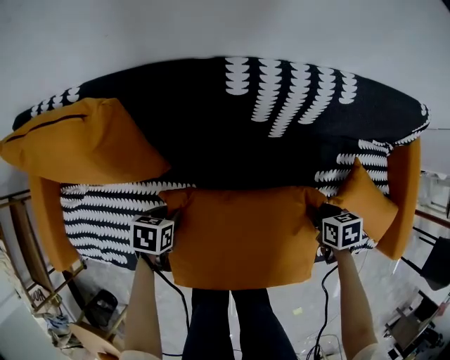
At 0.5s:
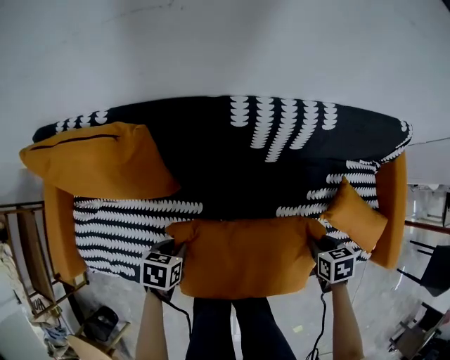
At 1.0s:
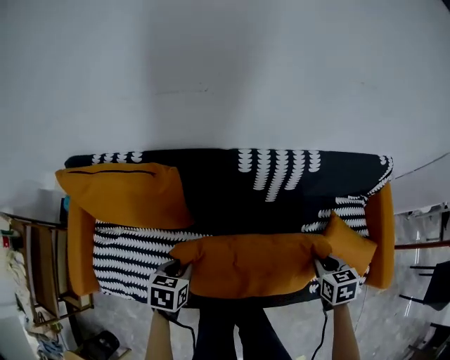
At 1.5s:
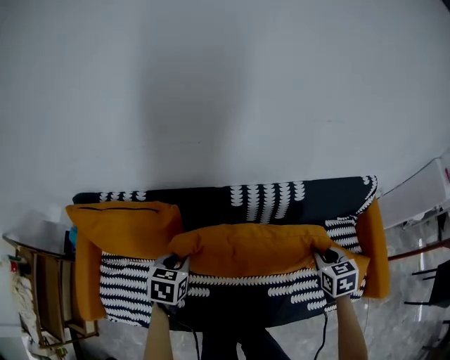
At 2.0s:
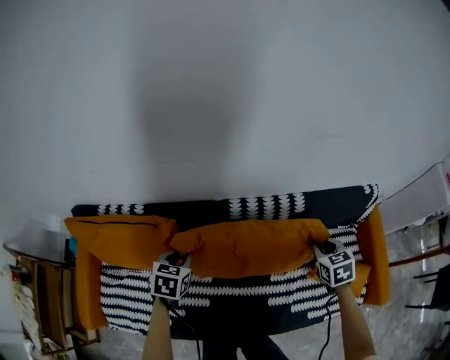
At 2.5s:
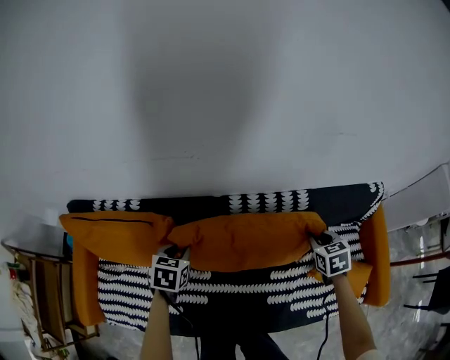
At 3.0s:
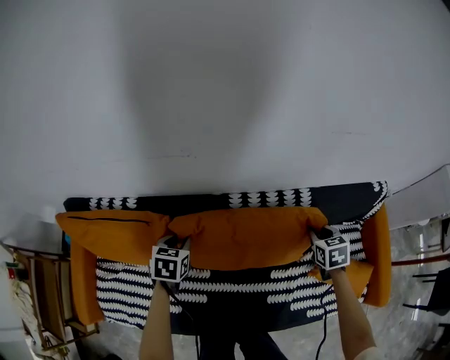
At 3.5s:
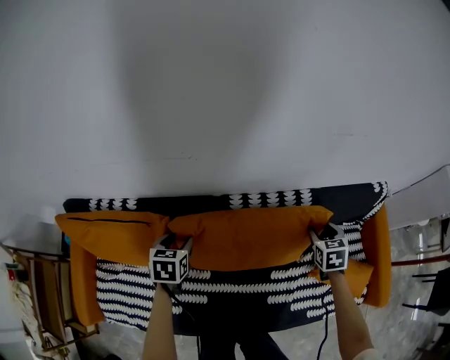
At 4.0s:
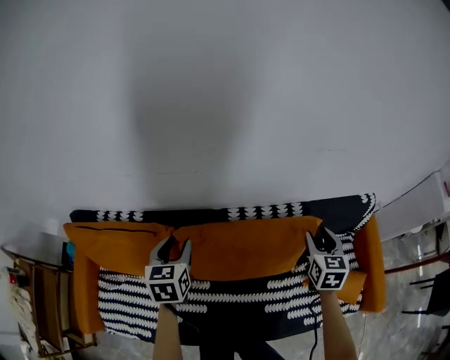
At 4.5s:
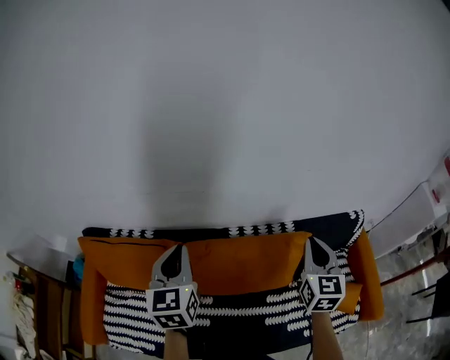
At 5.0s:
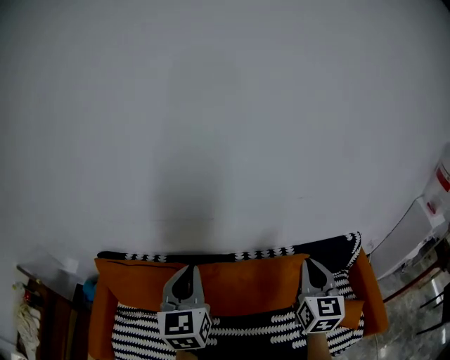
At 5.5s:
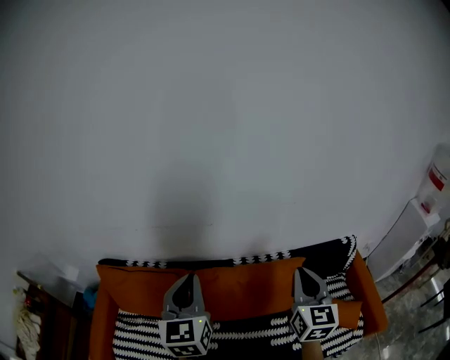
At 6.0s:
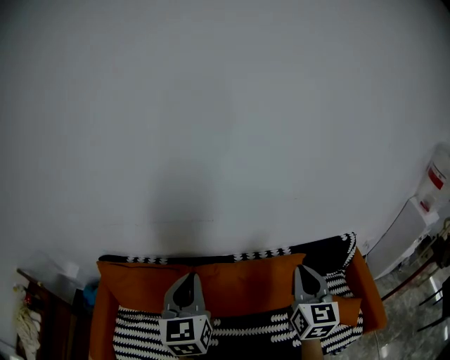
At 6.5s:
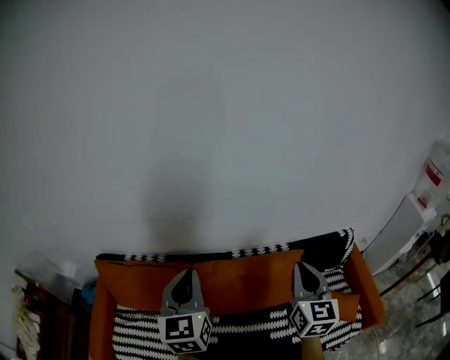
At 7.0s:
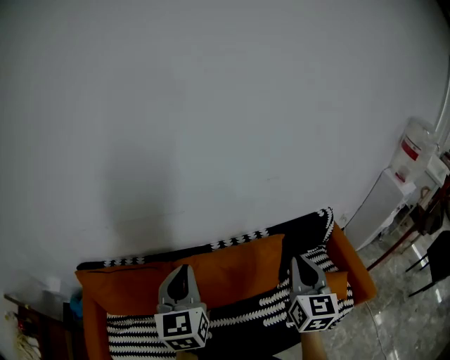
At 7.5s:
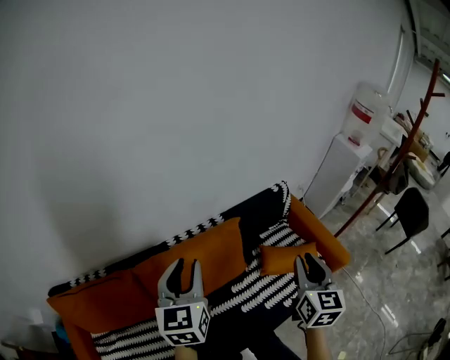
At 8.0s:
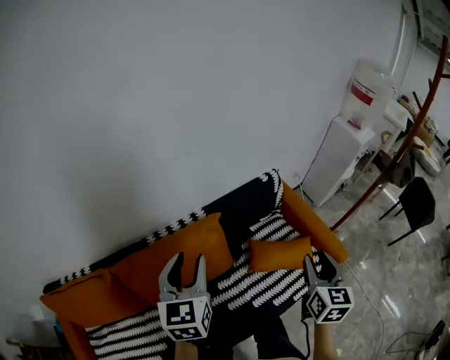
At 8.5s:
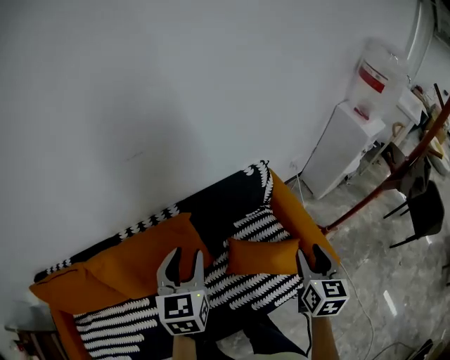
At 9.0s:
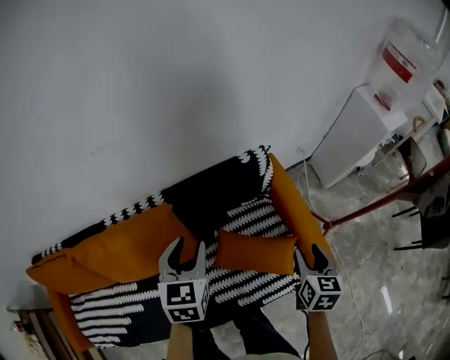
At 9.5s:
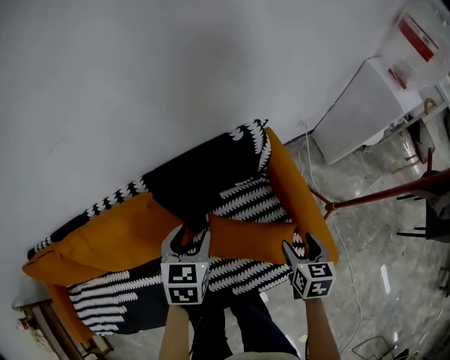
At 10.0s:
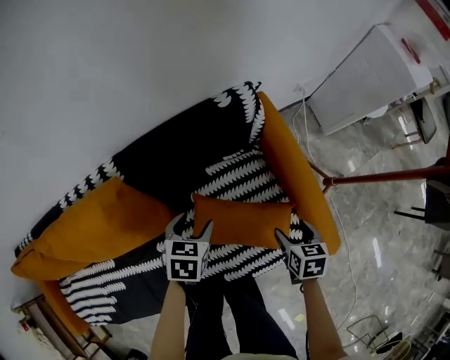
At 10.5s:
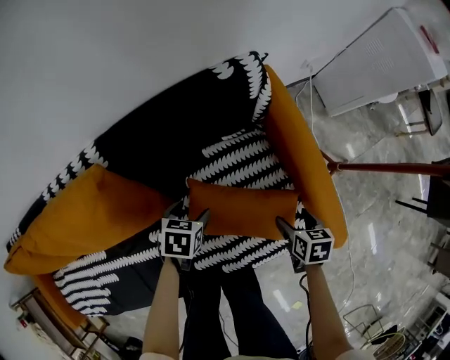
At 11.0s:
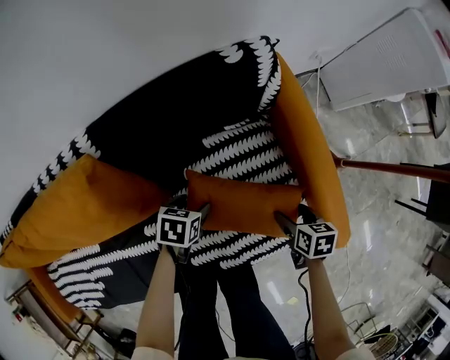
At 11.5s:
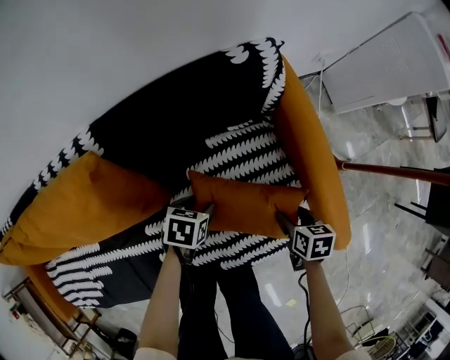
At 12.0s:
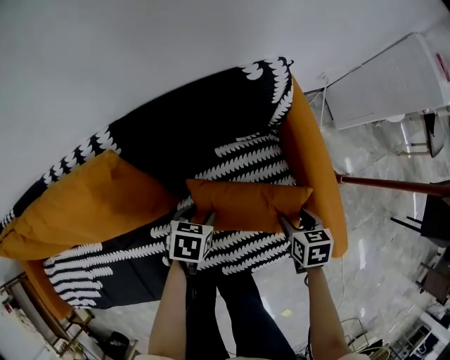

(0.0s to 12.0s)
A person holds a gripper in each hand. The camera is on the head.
0.0s - 2.0s: The two grippers go some 30 cm upward and forward. The left gripper swivels roughly 30 degrees. The right gripper swivels approximately 30 degrees.
2.0s - 4.0s: Both grippers move upward and forward, approximately 10 cm. The right gripper rotates approximately 20 degrees, and opens up. The left gripper swivels some 20 degrees, and opens.
4.0s - 6.0s: The two grippers go approximately 30 cm upward and backward. The right gripper swivels some 30 degrees, and closes its fingers. Meanwhile the left gripper swivels roughly 30 degrees, and closes.
6.0s - 8.0s: The left gripper ends up roughly 30 cm from where it was, rotates some 30 degrees, and opens its fingers; the right gripper moves about 35 cm, rotates some 40 degrees, and opens its fingers.
8.0s - 10.0s: Both grippers travel together downward and to the right, some 50 cm. The left gripper points its fingers some 40 degrees further downward. The right gripper tips its fingers downward by roughly 40 degrees, and opens its fingers.
10.0s - 12.0s: The left gripper travels downward by about 10 cm. Meanwhile the right gripper goes some 5 cm downward.

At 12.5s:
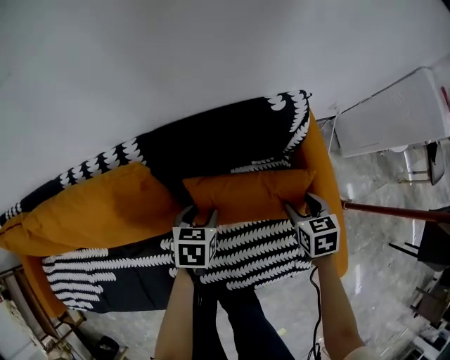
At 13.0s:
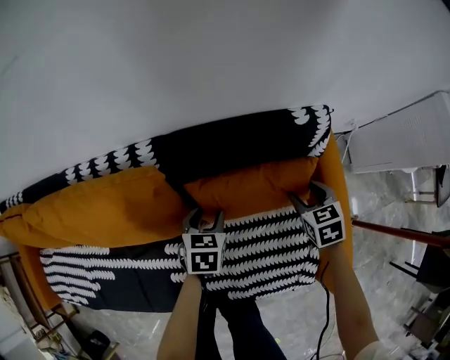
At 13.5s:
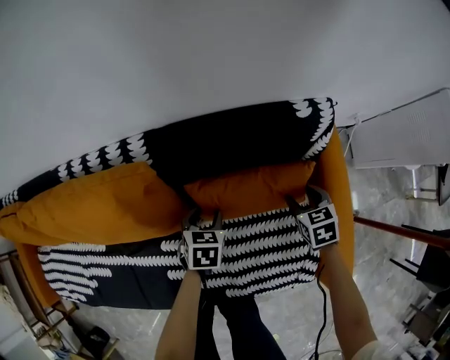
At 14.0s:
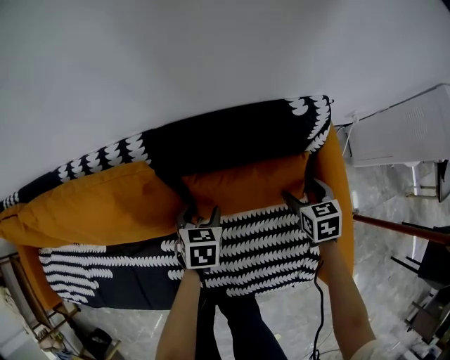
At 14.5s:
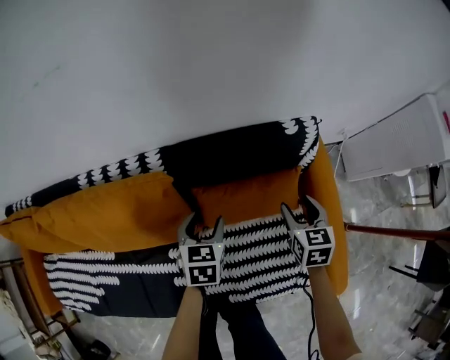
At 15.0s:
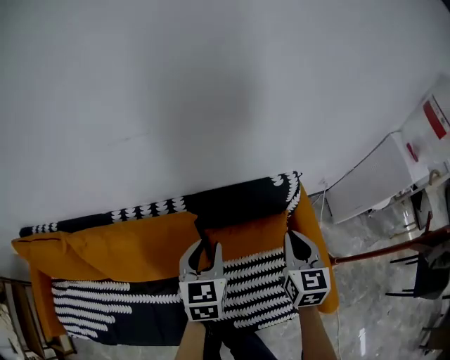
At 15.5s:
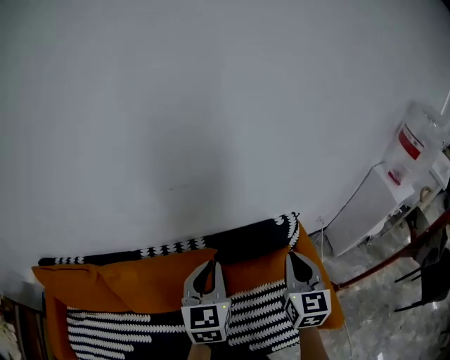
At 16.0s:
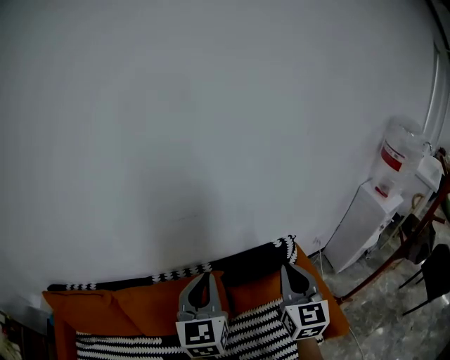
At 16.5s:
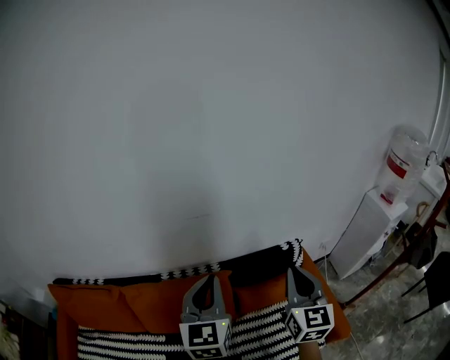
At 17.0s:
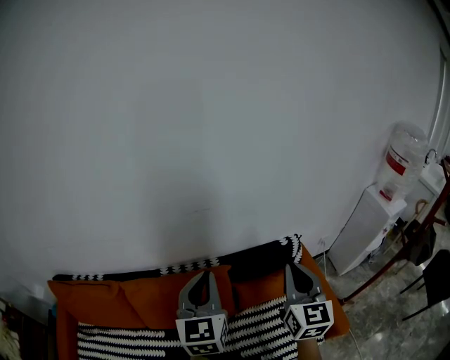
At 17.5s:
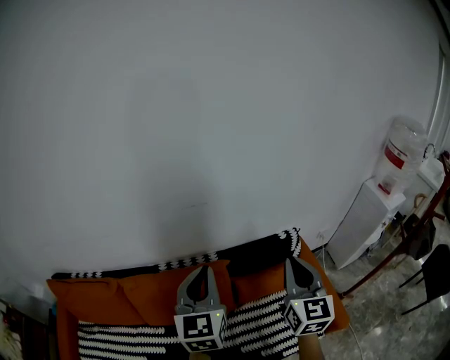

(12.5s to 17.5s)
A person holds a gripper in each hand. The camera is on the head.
12.5s - 15.0s: The grippers both shift upward by some 25 cm. The right gripper tips its fingers upward by roughly 30 degrees, and closes; the left gripper rotates approximately 30 degrees.
15.0s - 17.5s: The left gripper is displaced upward and to the left by about 30 cm, rotates about 20 degrees, and closes its fingers. The right gripper goes approximately 30 cm upward, backward and to the left, and turns by approximately 20 degrees.

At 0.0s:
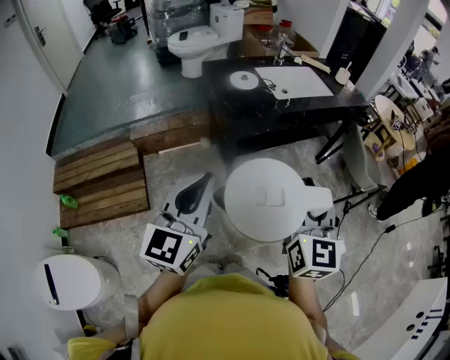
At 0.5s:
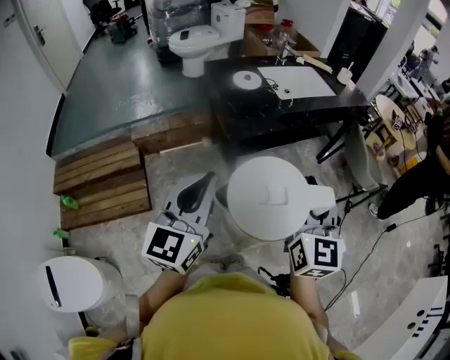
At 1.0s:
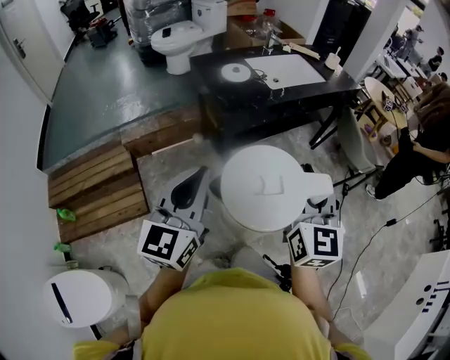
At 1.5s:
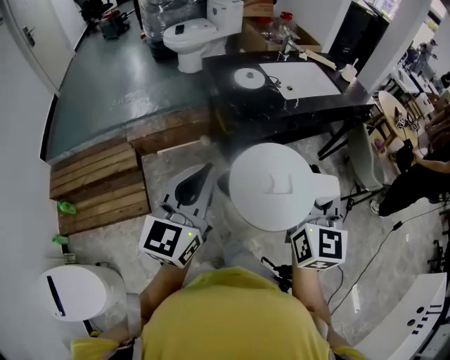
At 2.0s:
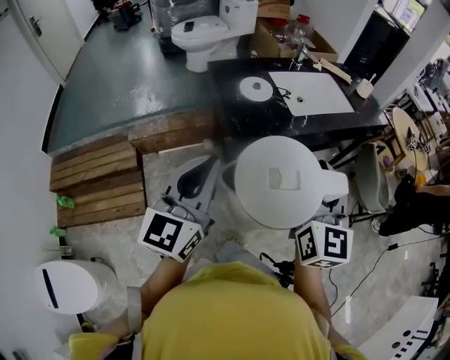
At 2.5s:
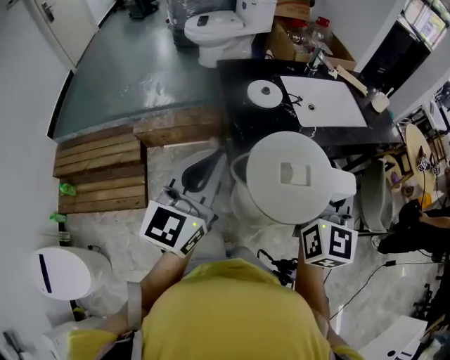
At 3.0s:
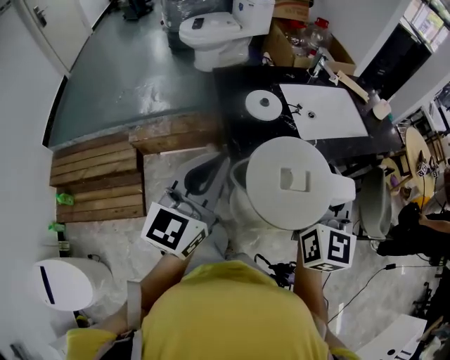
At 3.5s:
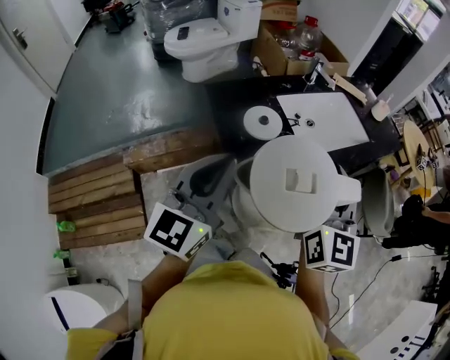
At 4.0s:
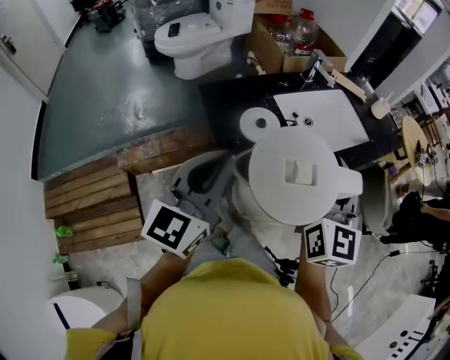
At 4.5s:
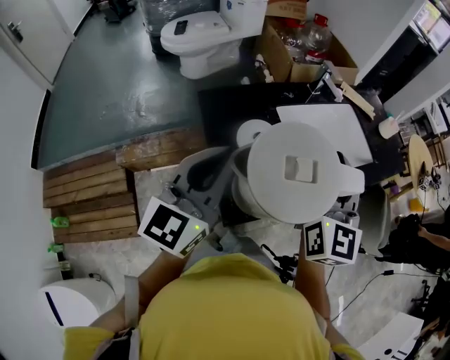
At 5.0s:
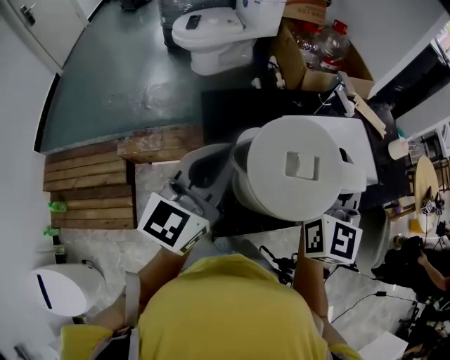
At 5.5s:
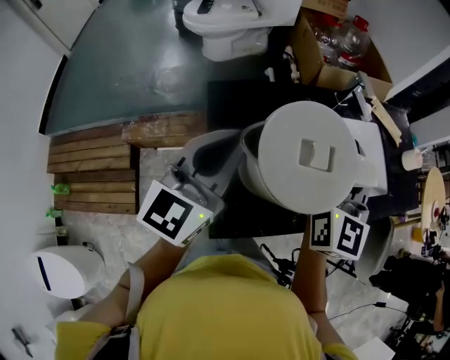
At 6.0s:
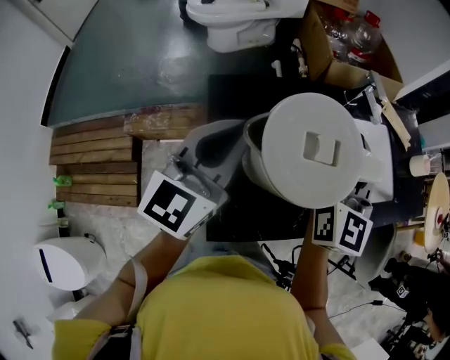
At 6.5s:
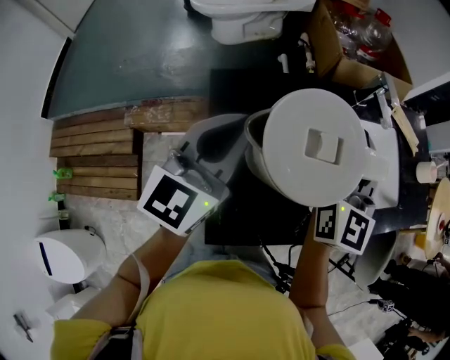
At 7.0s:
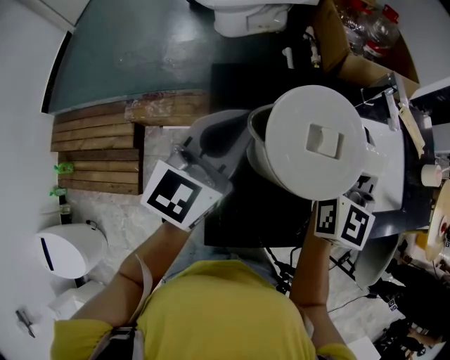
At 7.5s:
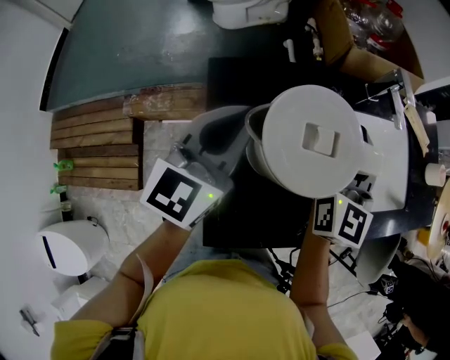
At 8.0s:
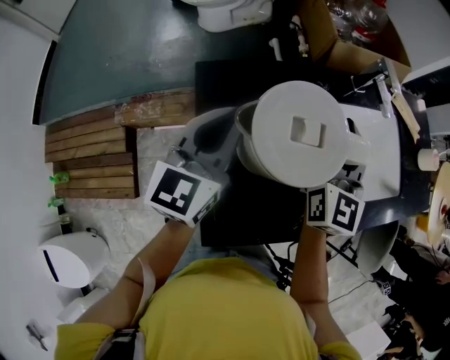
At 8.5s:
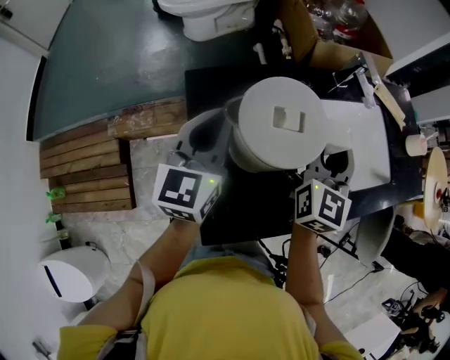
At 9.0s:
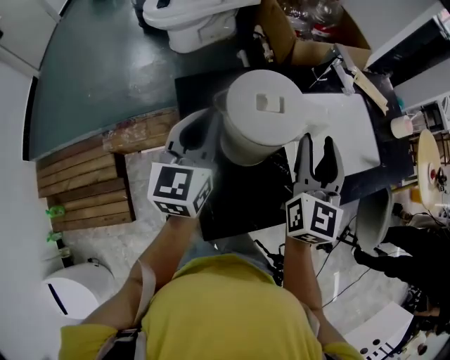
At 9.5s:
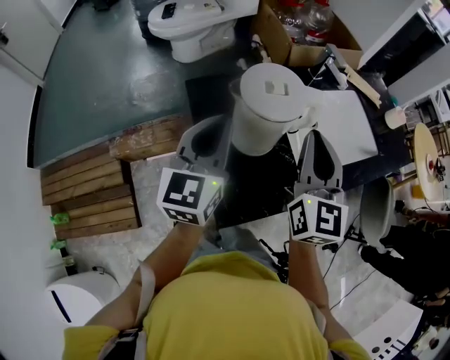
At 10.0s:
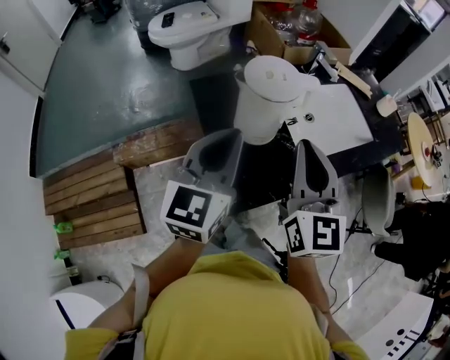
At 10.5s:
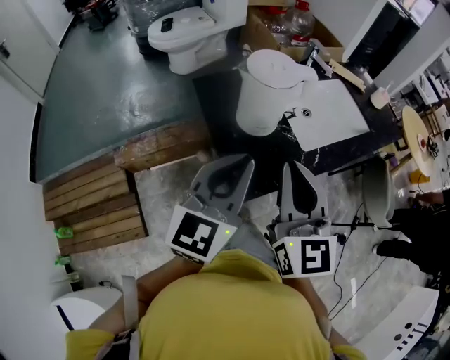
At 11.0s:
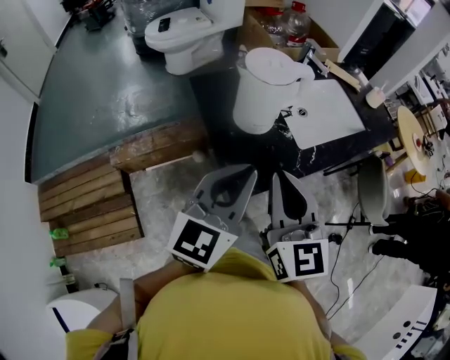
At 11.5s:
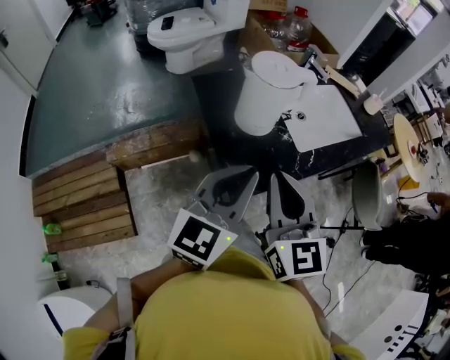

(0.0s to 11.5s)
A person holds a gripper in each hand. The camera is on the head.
0.0s - 2.0s: Both grippers move forward, some 20 cm.
2.0s - 4.0s: Both grippers move forward, some 25 cm.
4.0s - 6.0s: The grippers both shift forward by approximately 20 cm.
6.0s - 7.5s: The grippers both shift downward and forward by about 10 cm.
7.5s - 9.5s: The right gripper heads backward and upward, covering about 15 cm, and opens, then closes again. The left gripper shifts roughly 10 cm backward.
9.5s - 11.5s: The grippers both shift backward by approximately 20 cm.
